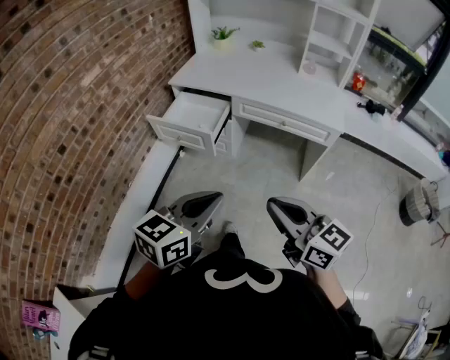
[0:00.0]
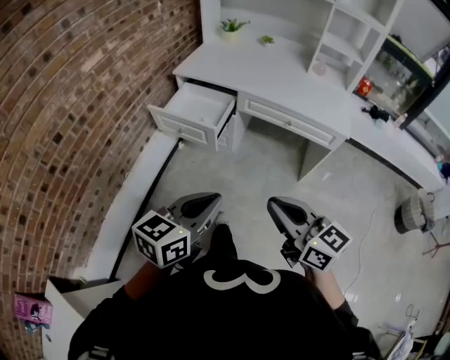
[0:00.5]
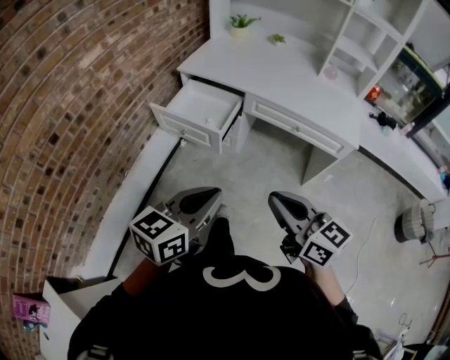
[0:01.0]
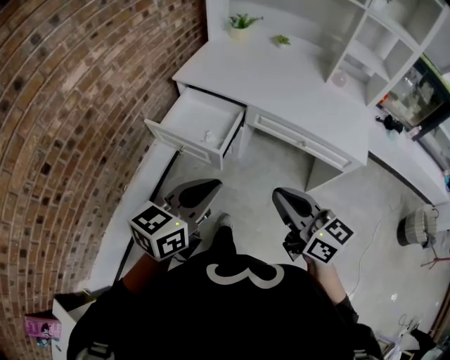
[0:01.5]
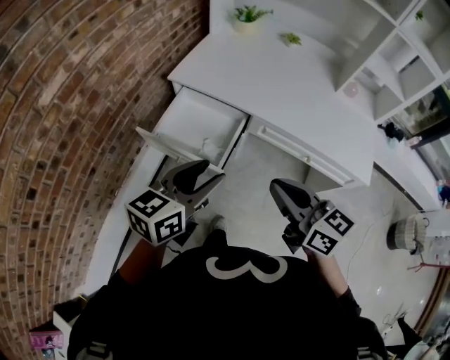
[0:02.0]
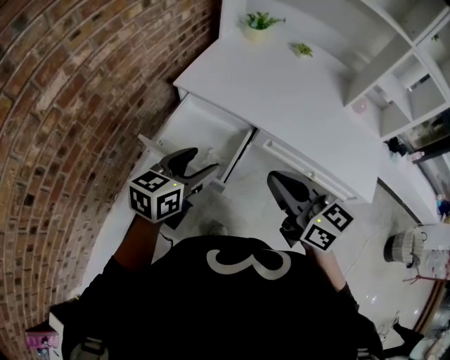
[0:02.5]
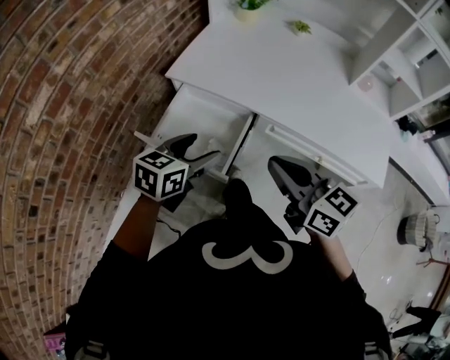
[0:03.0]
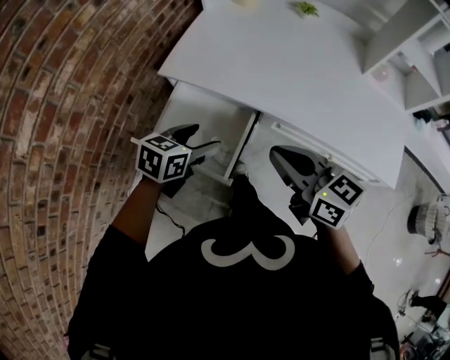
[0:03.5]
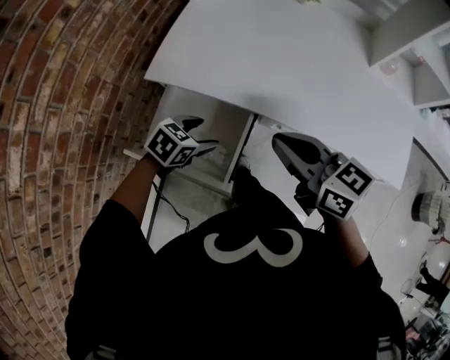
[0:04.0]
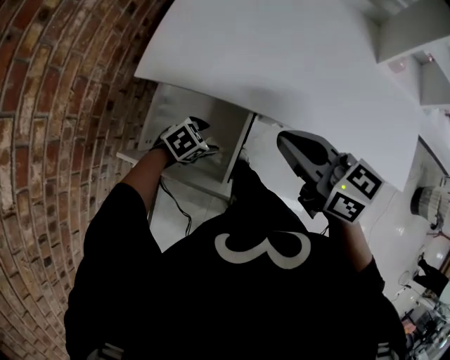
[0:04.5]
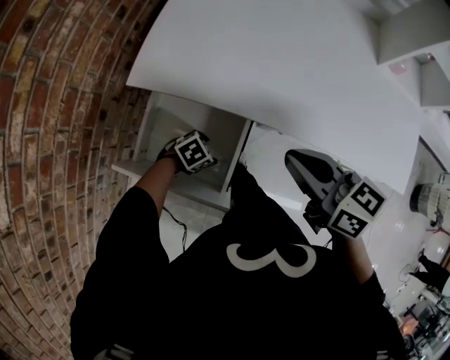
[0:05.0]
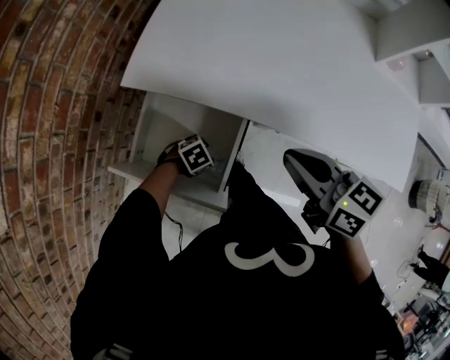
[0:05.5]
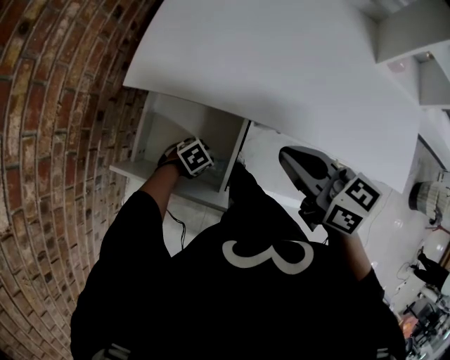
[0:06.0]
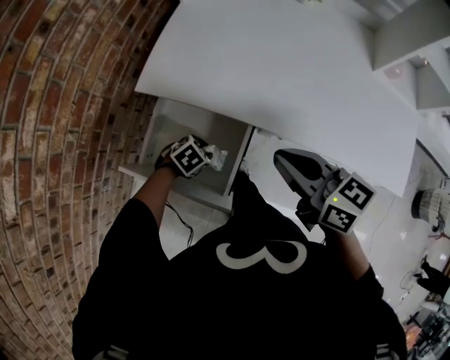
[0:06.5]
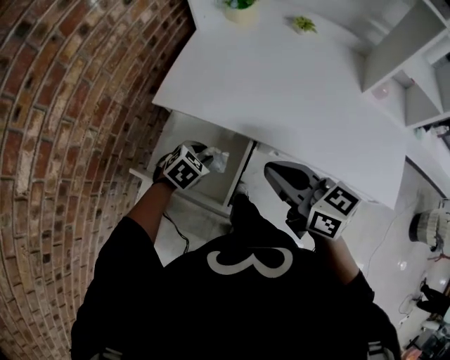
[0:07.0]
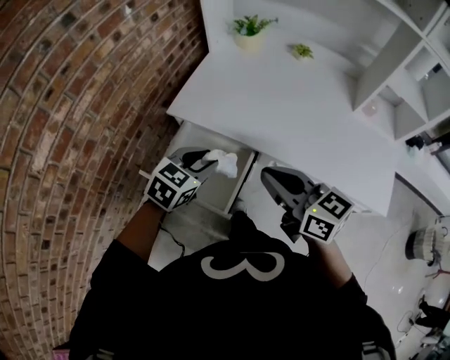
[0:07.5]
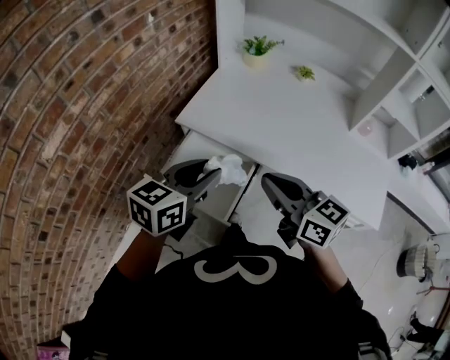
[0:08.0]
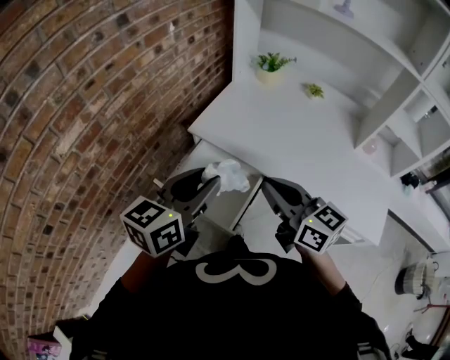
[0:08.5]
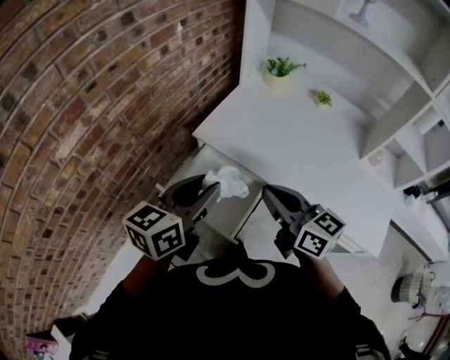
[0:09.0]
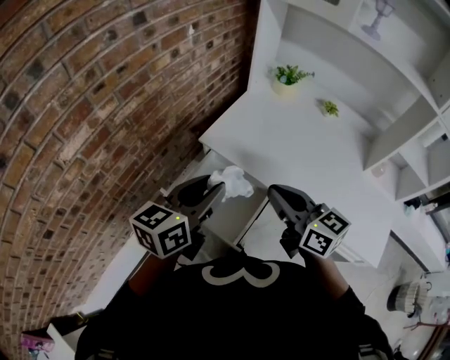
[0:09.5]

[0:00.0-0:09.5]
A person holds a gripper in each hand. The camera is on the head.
0:00.0 to 0:02.0: The grippers both shift forward by approximately 35 cm. The left gripper opens its fingers.
0:02.0 to 0:04.0: The right gripper goes approximately 20 cm forward. The left gripper travels downward and forward by some 35 cm, angles its fingers downward, by about 40 degrees, and opens up.
0:04.0 to 0:05.5: The right gripper ends up approximately 5 cm from where it was. The left gripper travels downward by some 20 cm, and turns by approximately 30 degrees.
0:05.5 to 0:07.5: The left gripper heads upward, covering roughly 35 cm, and tips its fingers upward by approximately 30 degrees; the right gripper is displaced upward by approximately 10 cm.
0:07.5 to 0:09.5: The right gripper moves to the left and forward, about 10 cm. The left gripper moves upward and to the left, roughly 15 cm, and turns by approximately 40 degrees.

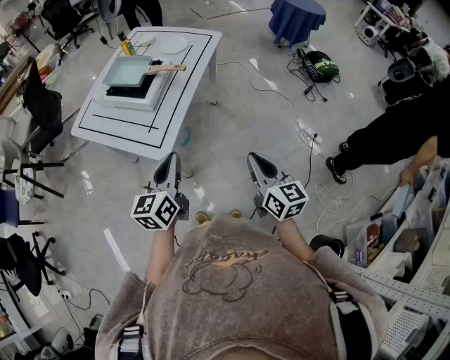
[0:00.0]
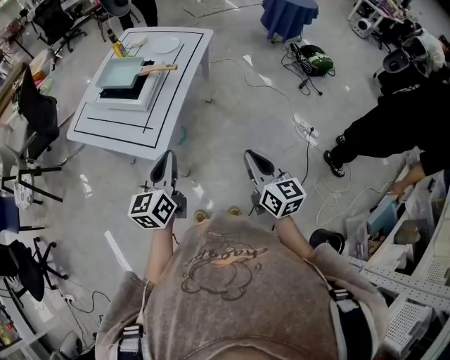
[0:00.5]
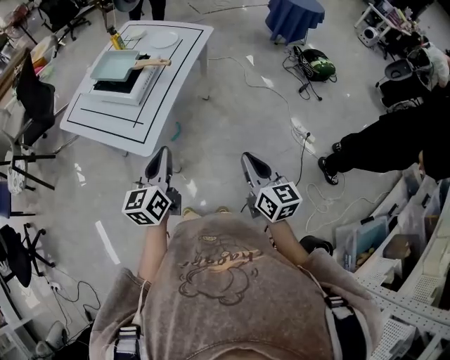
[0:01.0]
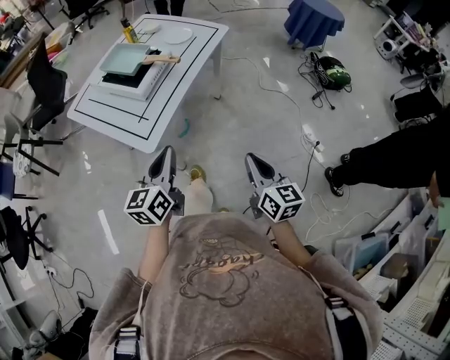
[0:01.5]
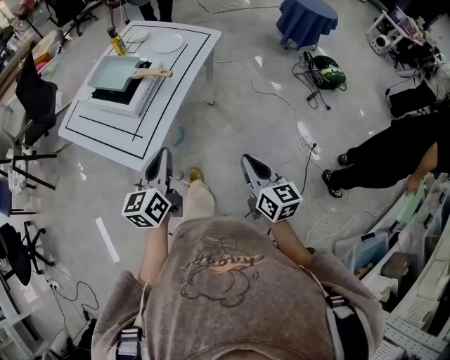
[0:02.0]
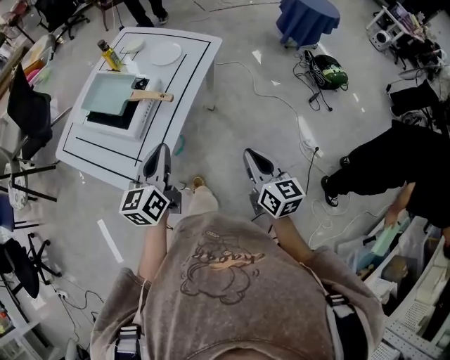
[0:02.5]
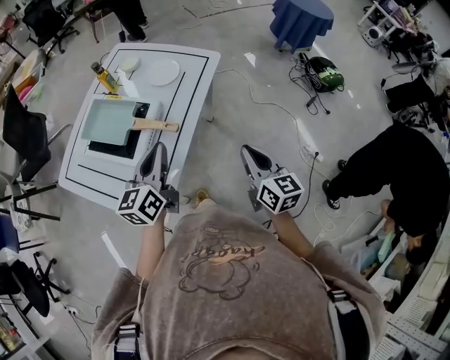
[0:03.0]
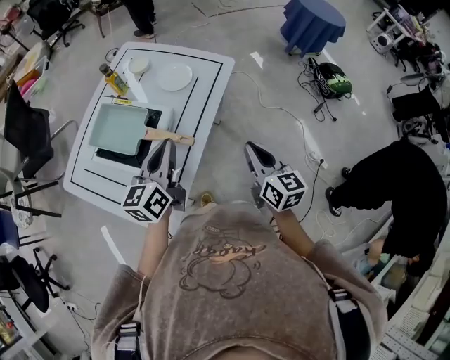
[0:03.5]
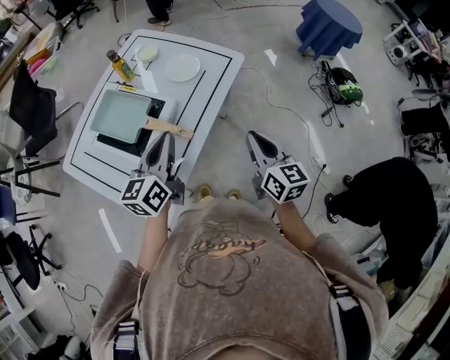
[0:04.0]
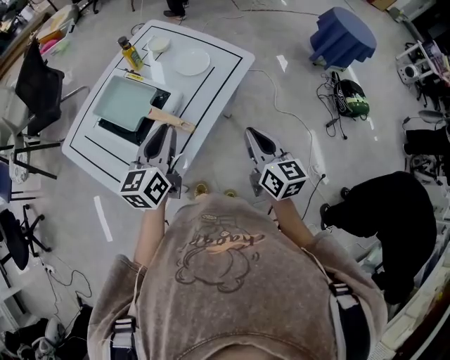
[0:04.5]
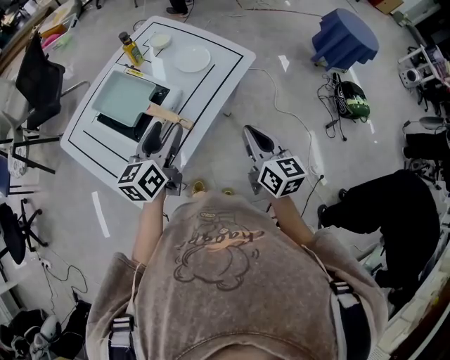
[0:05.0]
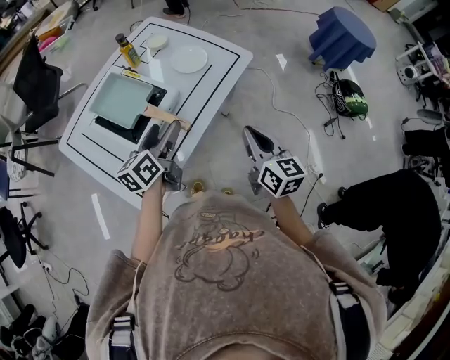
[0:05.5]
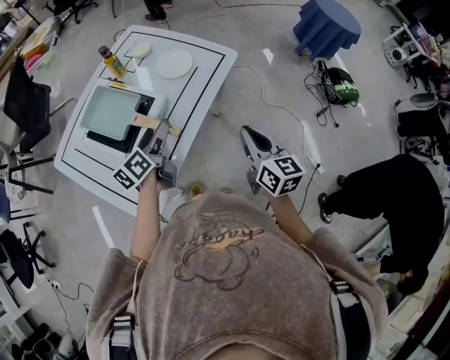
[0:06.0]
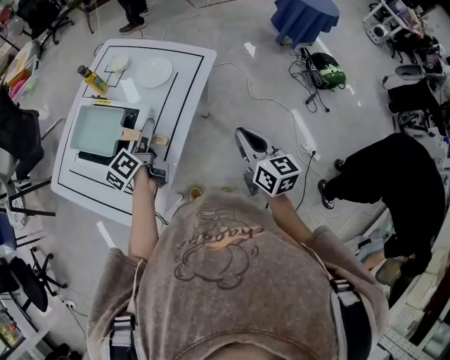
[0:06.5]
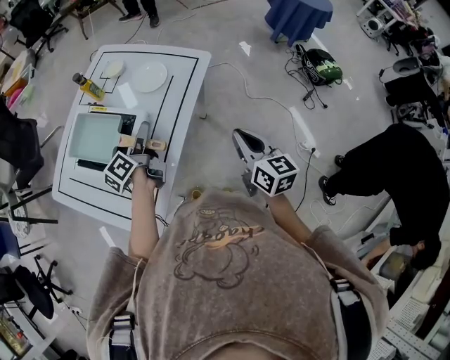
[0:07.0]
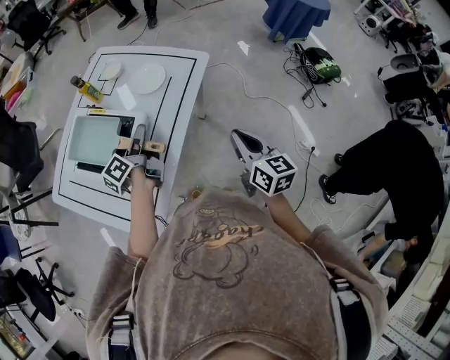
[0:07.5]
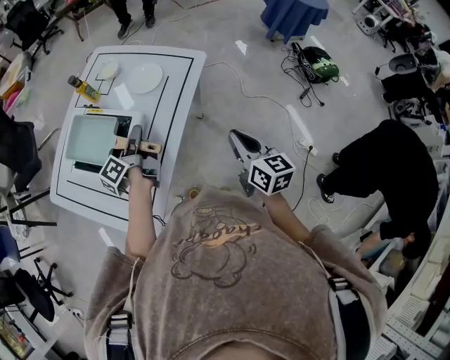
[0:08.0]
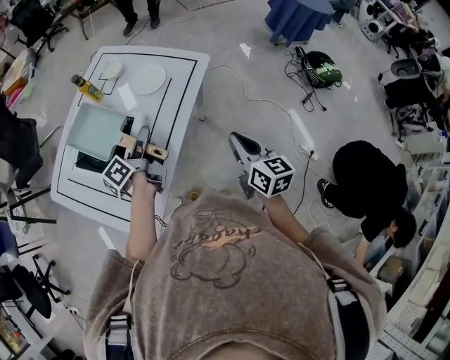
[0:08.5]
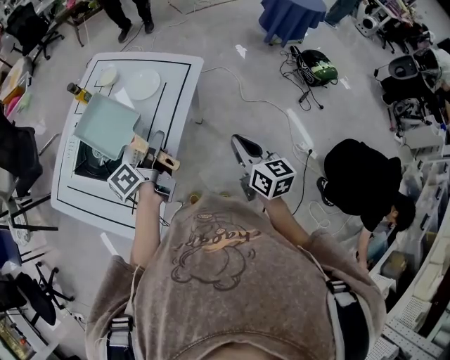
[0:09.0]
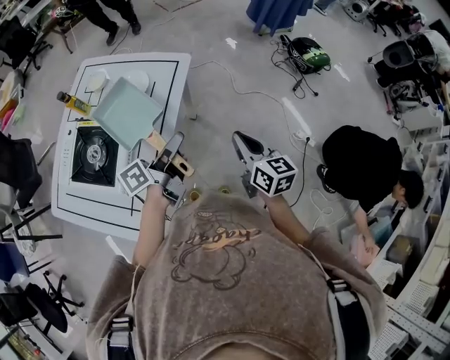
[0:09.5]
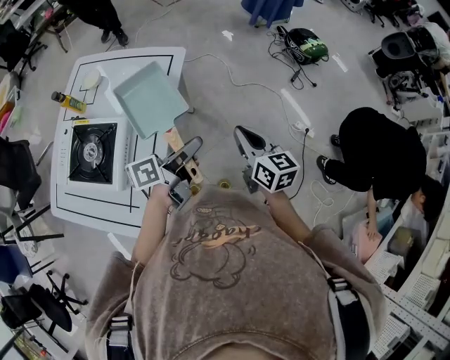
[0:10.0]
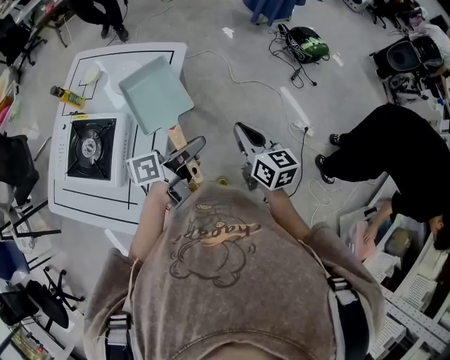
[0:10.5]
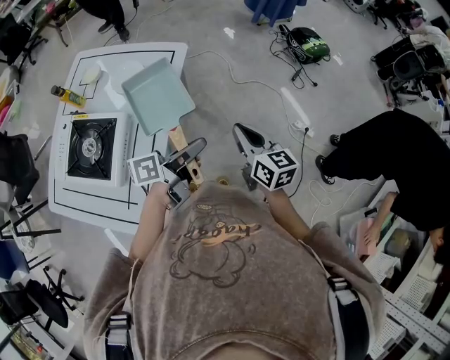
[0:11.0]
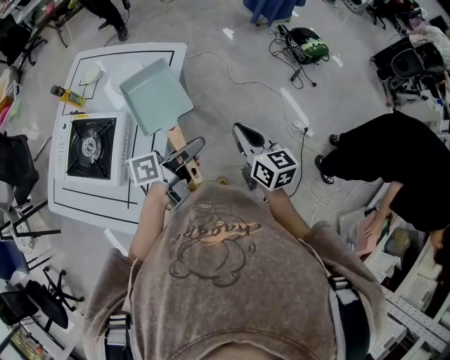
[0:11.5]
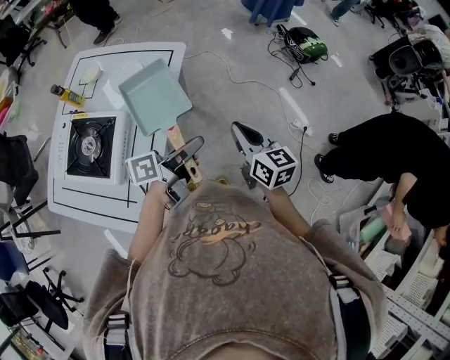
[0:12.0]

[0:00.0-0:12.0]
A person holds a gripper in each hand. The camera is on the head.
0:00.0 to 0:02.0: Both grippers move forward, some 5 cm.
0:02.0 to 0:04.0: Both grippers move forward, roughly 30 cm.
0:04.0 to 0:06.0: The left gripper is displaced downward by roughly 10 cm, changes its angle by some 20 degrees, and opens up.
0:06.0 to 0:08.0: The left gripper ends up about 5 cm from where it was, changes its angle by approximately 30 degrees, and closes its fingers.
0:08.0 to 0:10.0: The right gripper changes place by some 5 cm; the left gripper changes place by some 25 cm, and rotates roughly 50 degrees.
0:10.0 to 0:12.0: The grippers make only small movements.

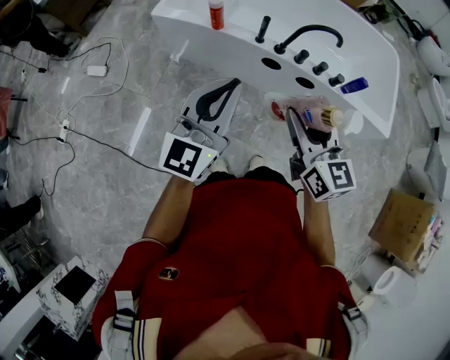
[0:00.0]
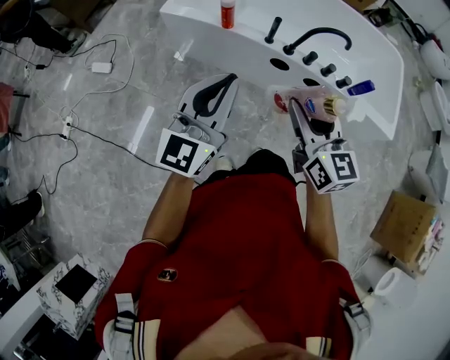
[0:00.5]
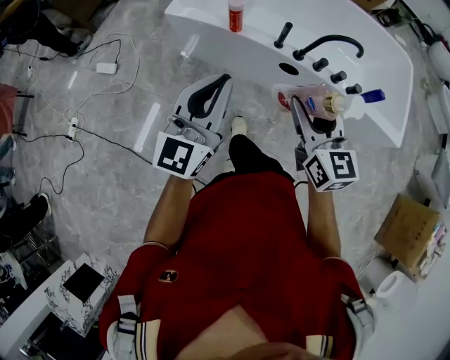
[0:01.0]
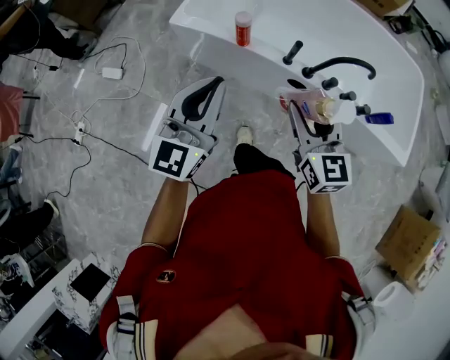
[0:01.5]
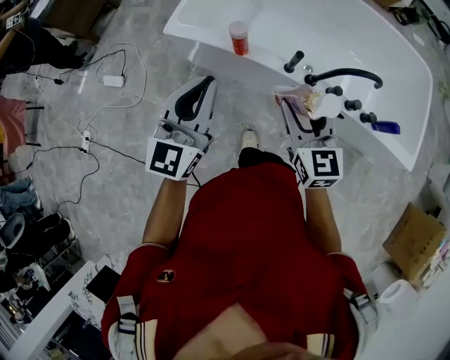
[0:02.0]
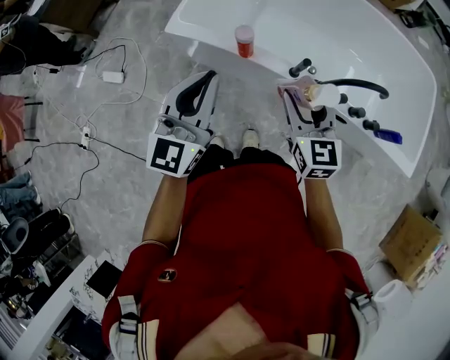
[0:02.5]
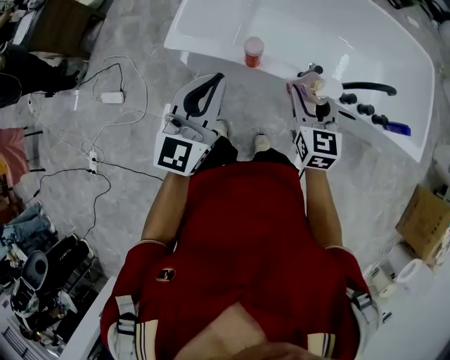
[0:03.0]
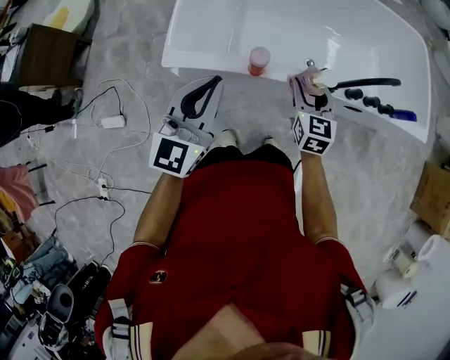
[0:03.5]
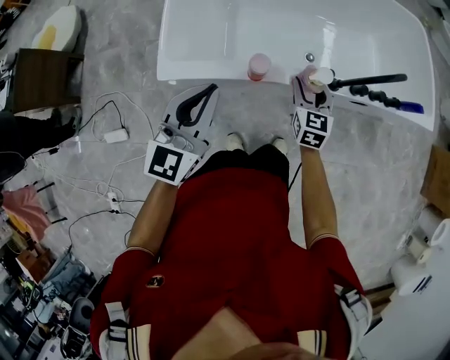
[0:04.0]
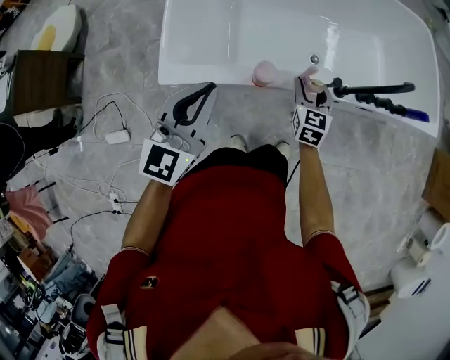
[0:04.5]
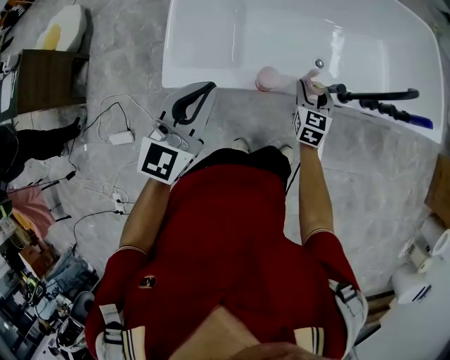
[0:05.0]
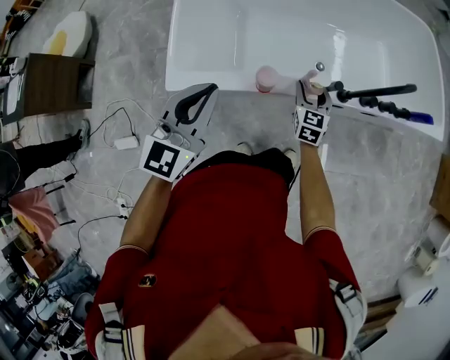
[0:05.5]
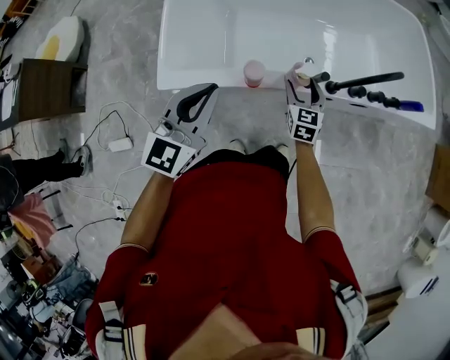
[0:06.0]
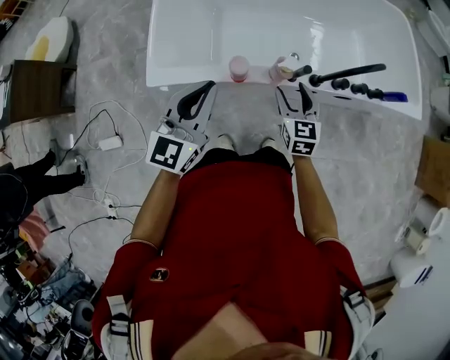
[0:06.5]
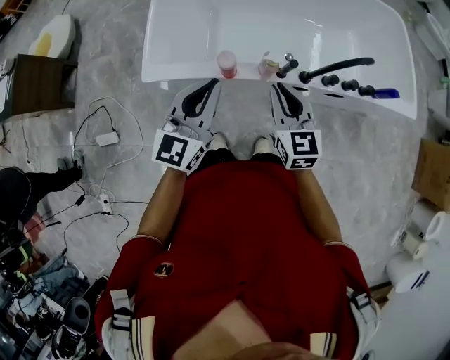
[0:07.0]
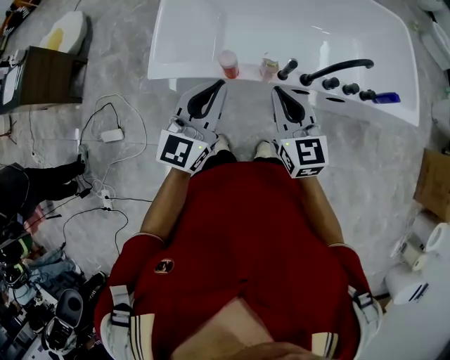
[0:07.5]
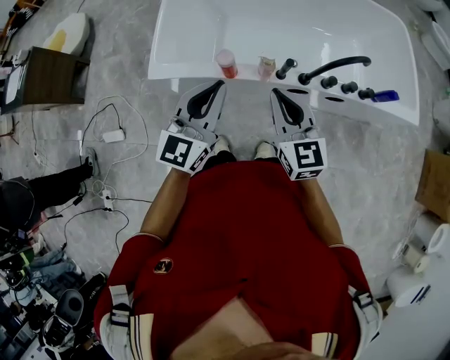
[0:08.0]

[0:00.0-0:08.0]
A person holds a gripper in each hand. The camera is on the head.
0:00.0 to 0:02.0: The left gripper is displaced forward and to the left by some 25 cm, while the right gripper moves forward, roughly 25 cm.
0:02.0 to 0:04.0: The left gripper shifts by roughly 25 cm, and turns by approximately 30 degrees, while the right gripper ends up about 25 cm from where it was, and swivels roughly 40 degrees.
0:04.0 to 0:06.0: The right gripper travels downward by about 5 cm.
0:06.0 to 0:08.0: The left gripper goes some 15 cm to the right, upward and backward. The right gripper heads upward and backward, covering about 25 cm, rotates some 30 degrees, and closes.
